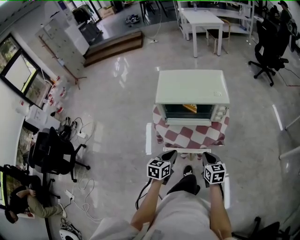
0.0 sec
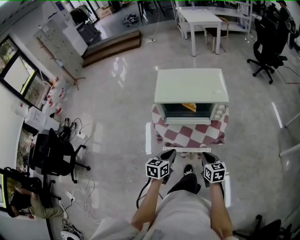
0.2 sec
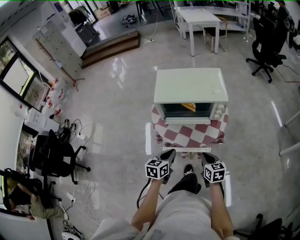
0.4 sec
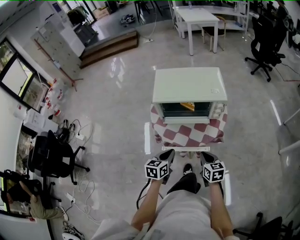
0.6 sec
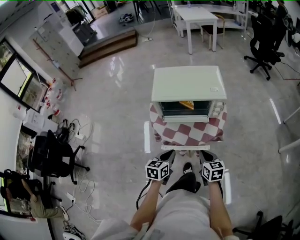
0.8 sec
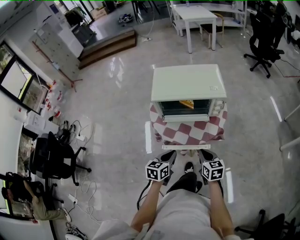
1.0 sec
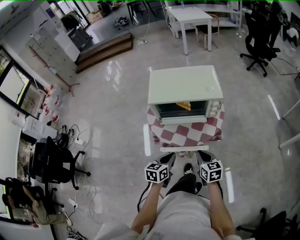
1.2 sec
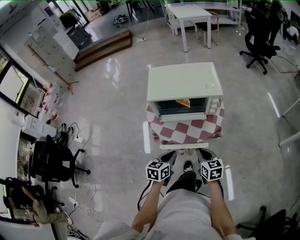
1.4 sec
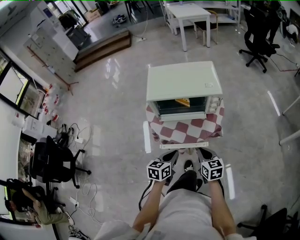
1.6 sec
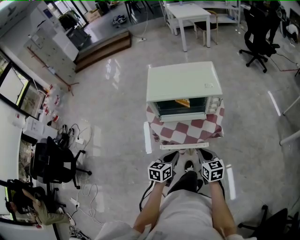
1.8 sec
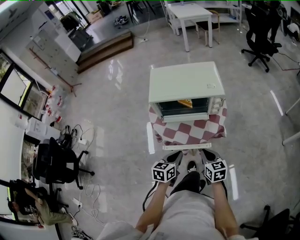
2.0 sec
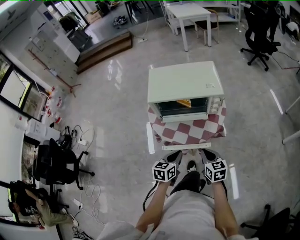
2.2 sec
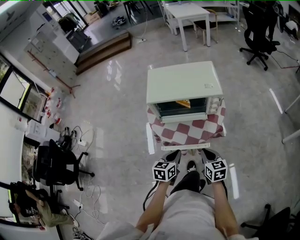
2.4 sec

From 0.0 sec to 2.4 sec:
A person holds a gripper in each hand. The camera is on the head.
From 0.0 sec to 2.4 sec: The grippers stay close to where they were, moving slightly.

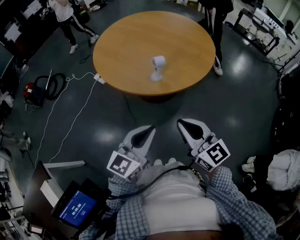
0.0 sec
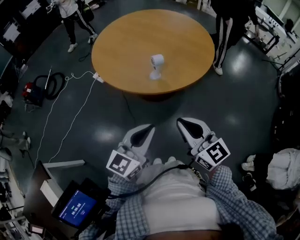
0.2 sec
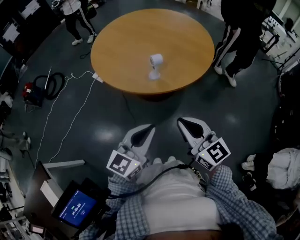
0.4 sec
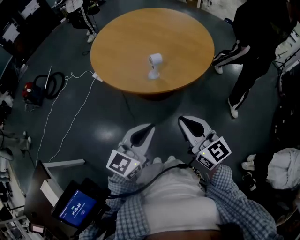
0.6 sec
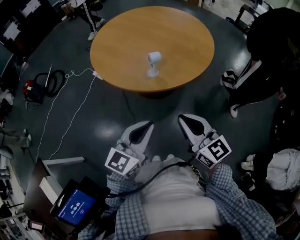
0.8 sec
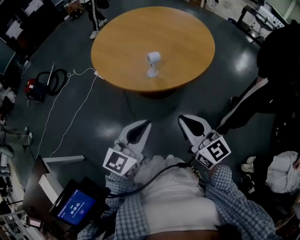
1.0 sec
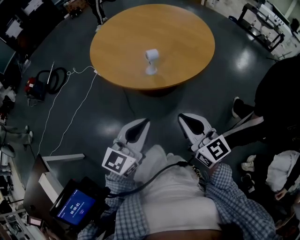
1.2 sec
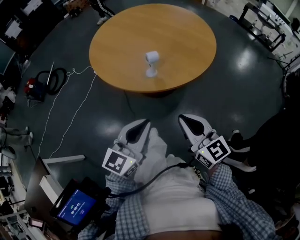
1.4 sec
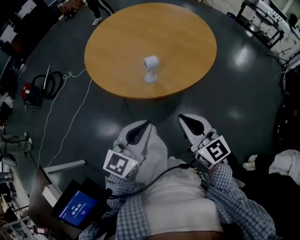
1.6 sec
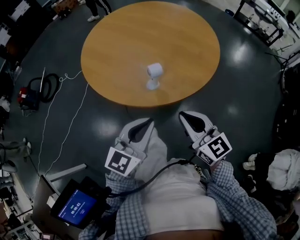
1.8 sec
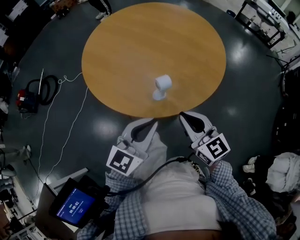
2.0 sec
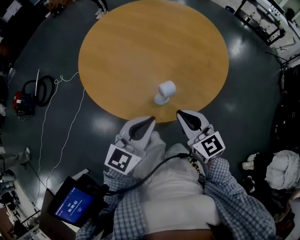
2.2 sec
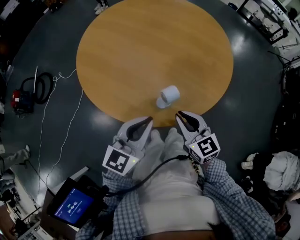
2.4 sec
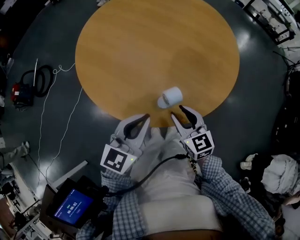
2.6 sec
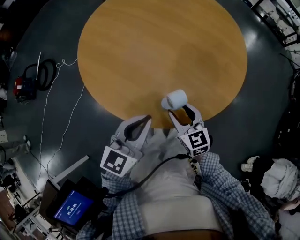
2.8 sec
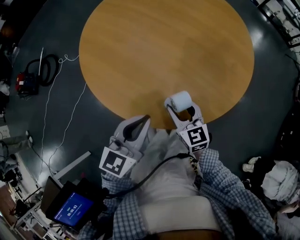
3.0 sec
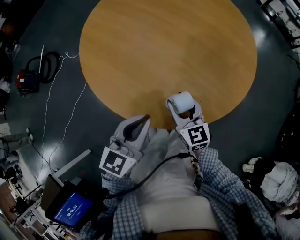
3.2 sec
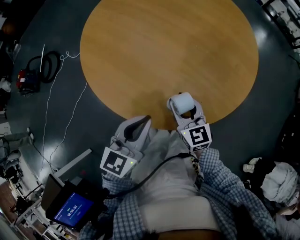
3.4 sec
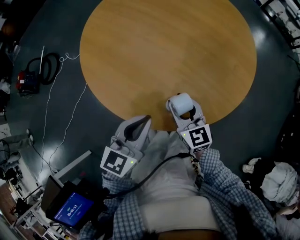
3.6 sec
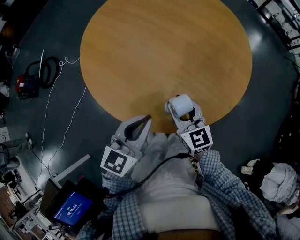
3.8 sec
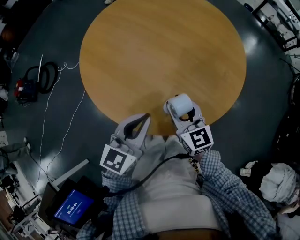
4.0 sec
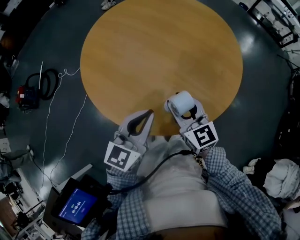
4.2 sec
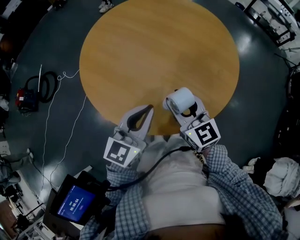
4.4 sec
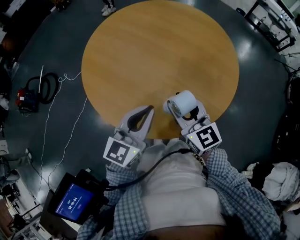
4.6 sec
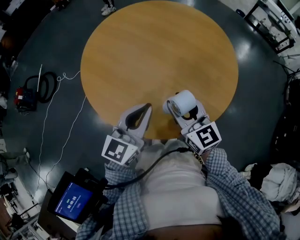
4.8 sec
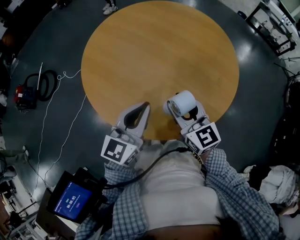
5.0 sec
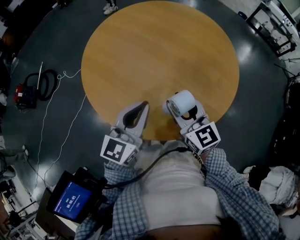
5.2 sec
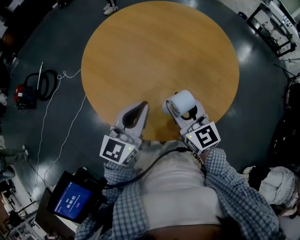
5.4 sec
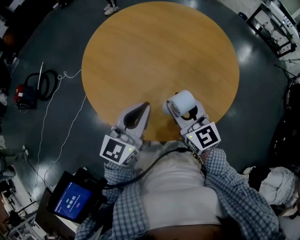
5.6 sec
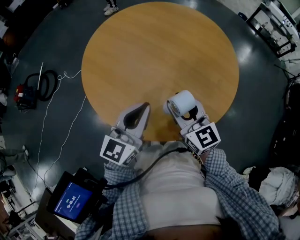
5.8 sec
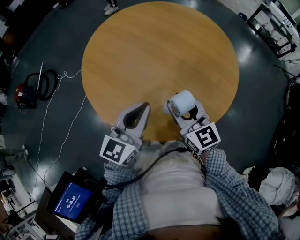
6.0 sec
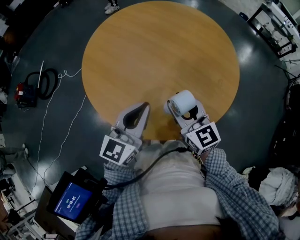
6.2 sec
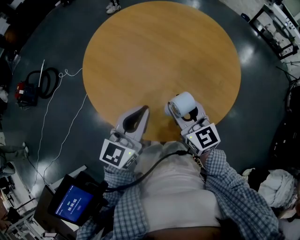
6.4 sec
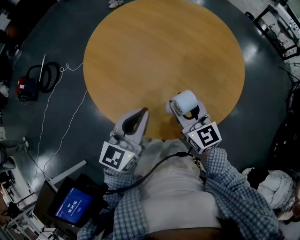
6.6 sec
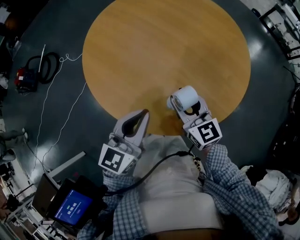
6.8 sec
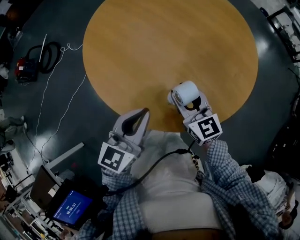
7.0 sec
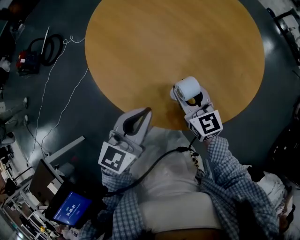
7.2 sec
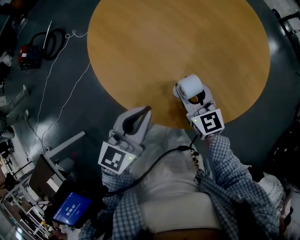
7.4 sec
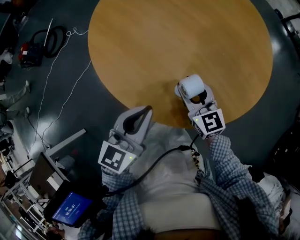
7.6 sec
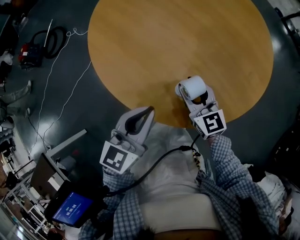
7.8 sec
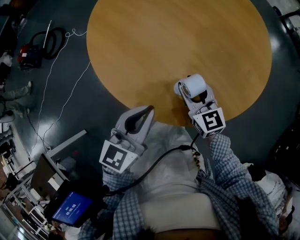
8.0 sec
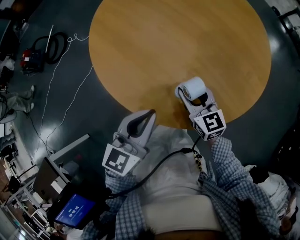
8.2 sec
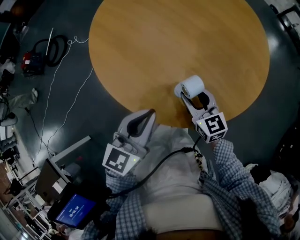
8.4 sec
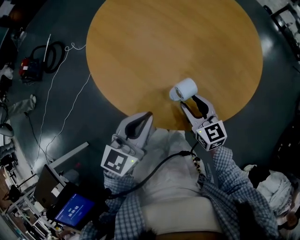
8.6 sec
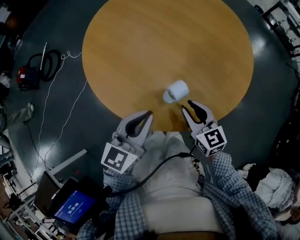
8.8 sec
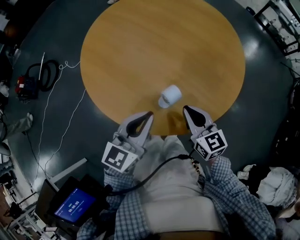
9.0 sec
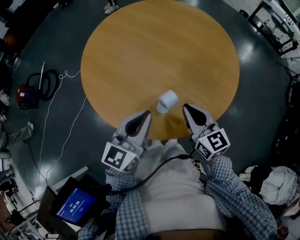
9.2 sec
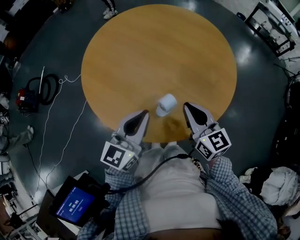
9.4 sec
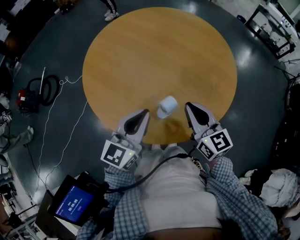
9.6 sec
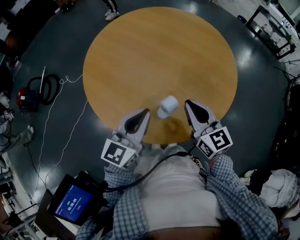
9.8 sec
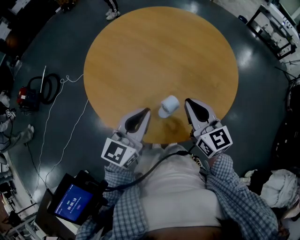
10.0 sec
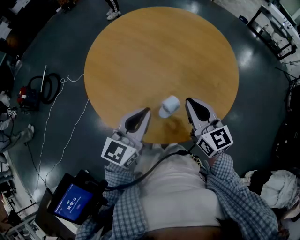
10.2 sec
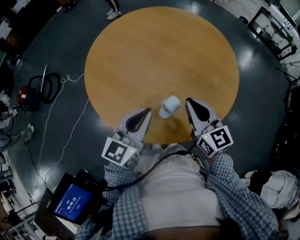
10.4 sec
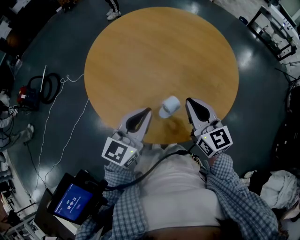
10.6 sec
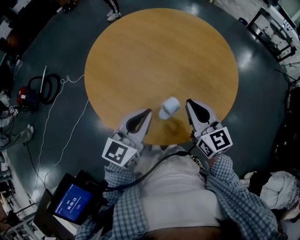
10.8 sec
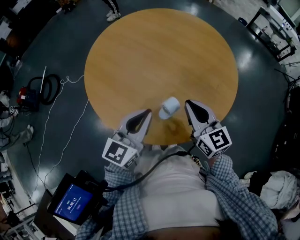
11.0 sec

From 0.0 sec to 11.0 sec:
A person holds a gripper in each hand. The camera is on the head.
From 0.0 sec to 1.6 sec: Both grippers move forward, roughly 5 cm.
From 1.6 sec to 3.2 sec: The left gripper is displaced forward and to the left by some 20 cm; the right gripper heads forward, downward and to the left, covering roughly 30 cm, and opens up.
From 3.2 sec to 4.8 sec: The left gripper goes approximately 10 cm upward and forward. Meanwhile the right gripper heads upward, covering approximately 10 cm.
From 4.8 sec to 6.2 sec: There are only small adjustments of the grippers.
From 6.2 sec to 7.8 sec: The right gripper goes some 10 cm downward; the left gripper is displaced downward, to the left and backward by some 10 cm.
From 7.8 sec to 9.4 sec: The left gripper is displaced upward by about 5 cm. Meanwhile the right gripper goes approximately 15 cm upward and to the right, and closes its fingers.
From 9.4 sec to 11.0 sec: There are only small adjustments of the grippers.

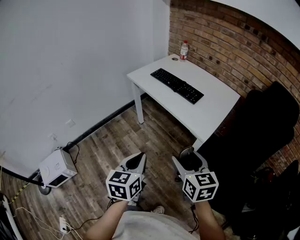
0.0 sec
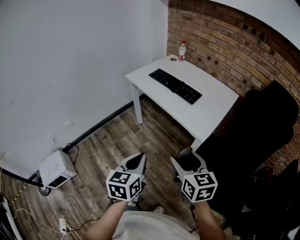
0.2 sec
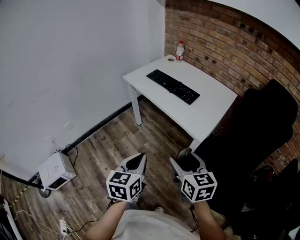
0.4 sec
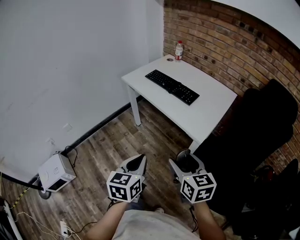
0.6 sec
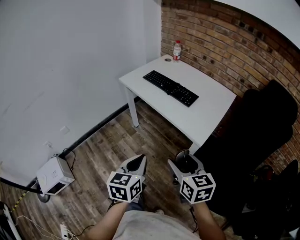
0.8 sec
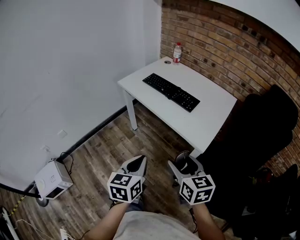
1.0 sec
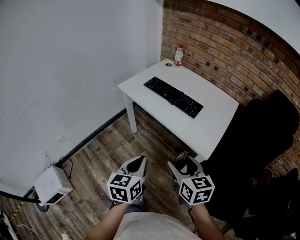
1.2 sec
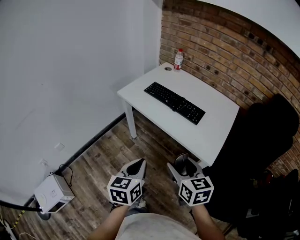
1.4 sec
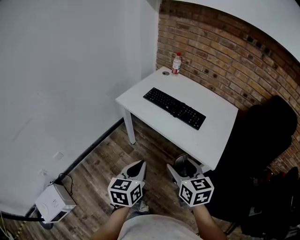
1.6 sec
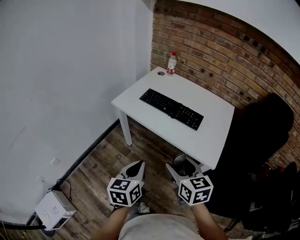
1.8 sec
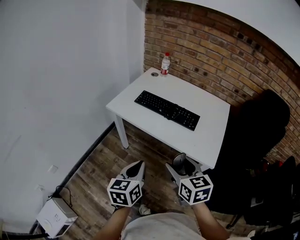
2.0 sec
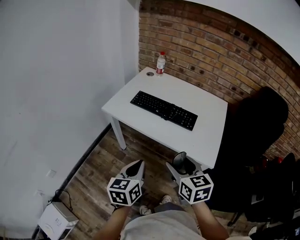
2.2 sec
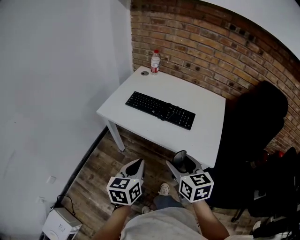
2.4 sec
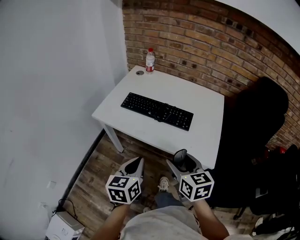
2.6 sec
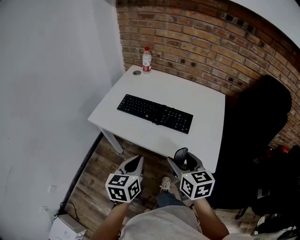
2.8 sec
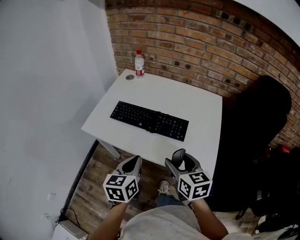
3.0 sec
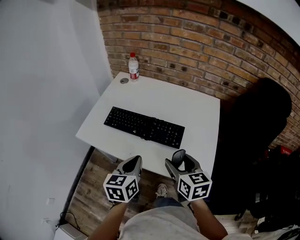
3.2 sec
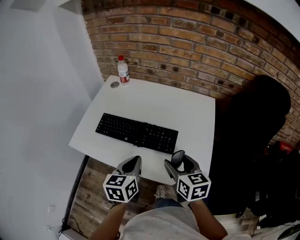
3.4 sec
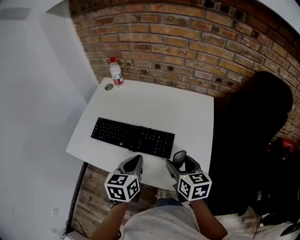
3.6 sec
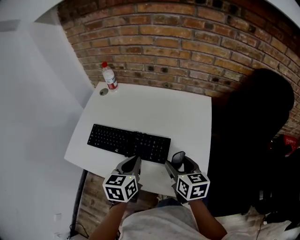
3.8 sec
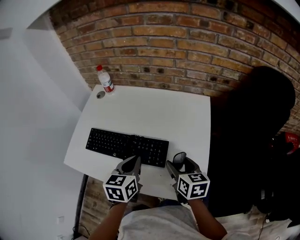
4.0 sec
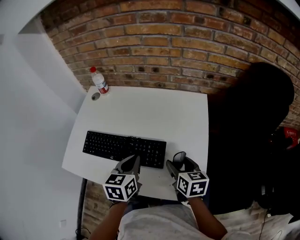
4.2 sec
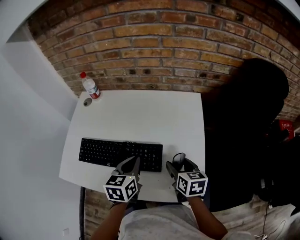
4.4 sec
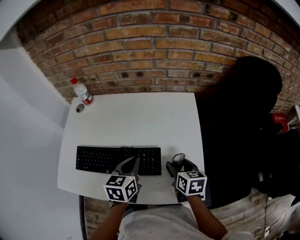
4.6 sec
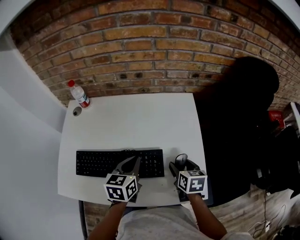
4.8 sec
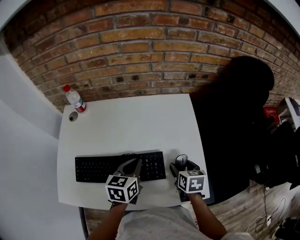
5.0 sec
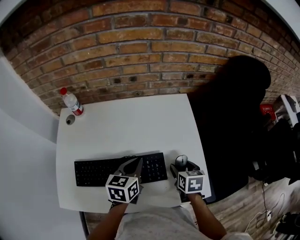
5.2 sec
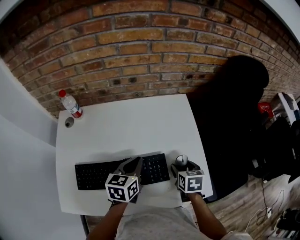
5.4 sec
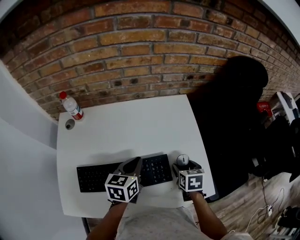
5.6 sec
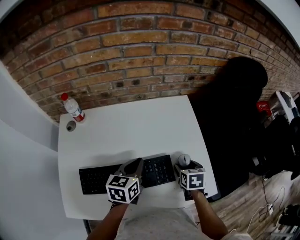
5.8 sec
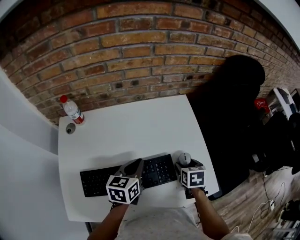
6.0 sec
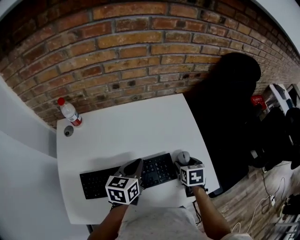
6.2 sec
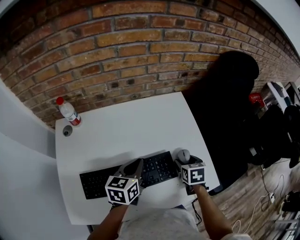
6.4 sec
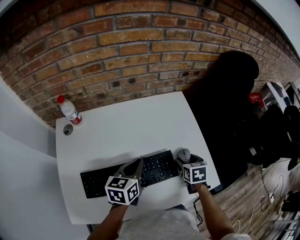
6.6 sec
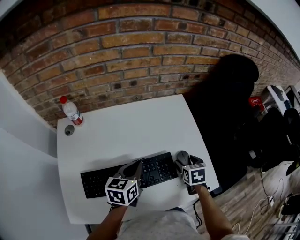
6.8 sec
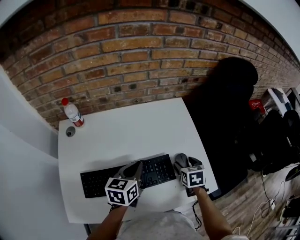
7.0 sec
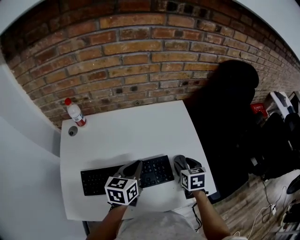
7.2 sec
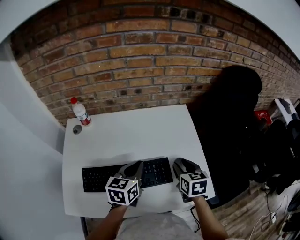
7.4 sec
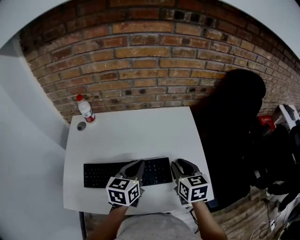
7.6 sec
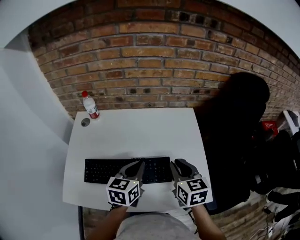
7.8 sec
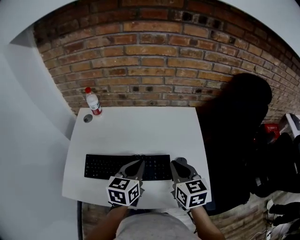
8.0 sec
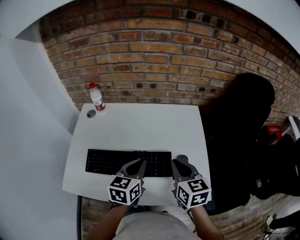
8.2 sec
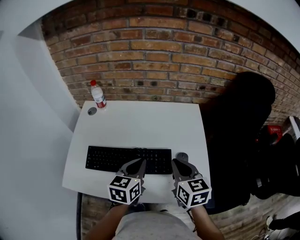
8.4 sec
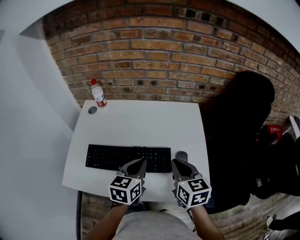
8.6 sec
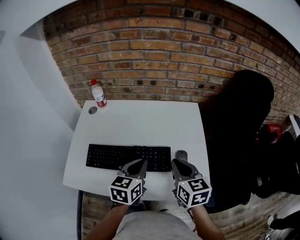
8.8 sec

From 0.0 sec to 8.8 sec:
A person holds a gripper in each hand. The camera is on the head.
From 0.0 sec to 1.4 sec: Both grippers move forward, about 15 cm.
From 1.4 sec to 3.0 sec: The grippers both shift forward by roughly 20 cm.
From 3.0 sec to 4.4 sec: The right gripper is displaced forward, to the right and downward by roughly 25 cm, and rotates roughly 30 degrees; the left gripper heads forward and to the right, covering about 25 cm.
From 4.4 sec to 5.8 sec: The left gripper ends up some 10 cm from where it was, and swivels some 20 degrees, while the right gripper turns by approximately 30 degrees.
From 5.8 sec to 7.4 sec: The right gripper is displaced upward by roughly 10 cm, and closes.
From 7.4 sec to 8.8 sec: The left gripper goes some 10 cm backward, while the right gripper travels backward and upward by approximately 10 cm, changes its angle by about 20 degrees, and closes.

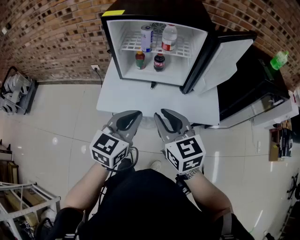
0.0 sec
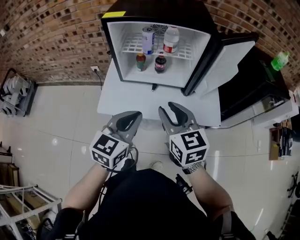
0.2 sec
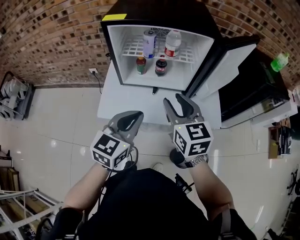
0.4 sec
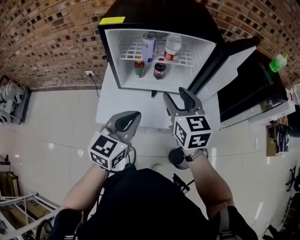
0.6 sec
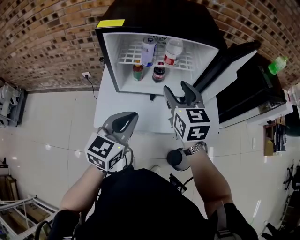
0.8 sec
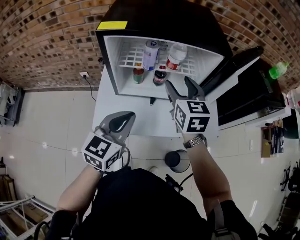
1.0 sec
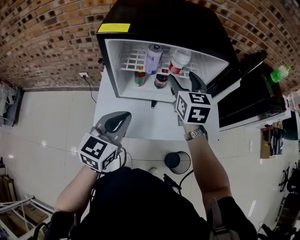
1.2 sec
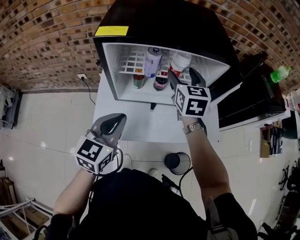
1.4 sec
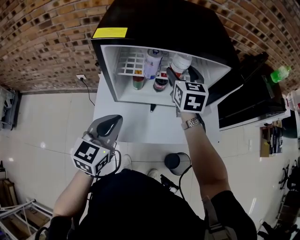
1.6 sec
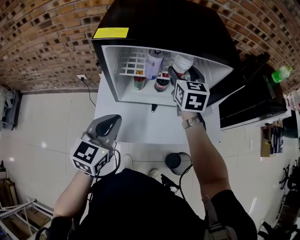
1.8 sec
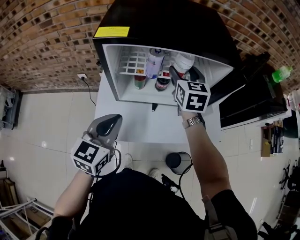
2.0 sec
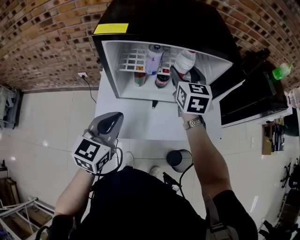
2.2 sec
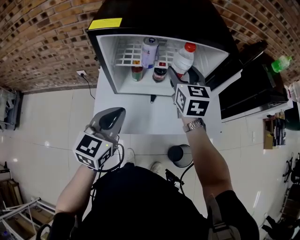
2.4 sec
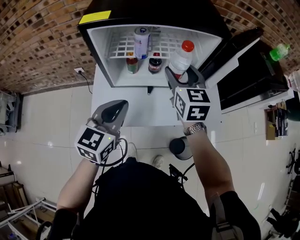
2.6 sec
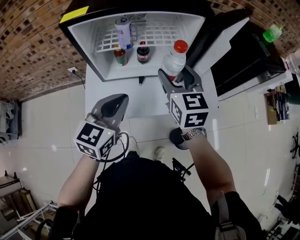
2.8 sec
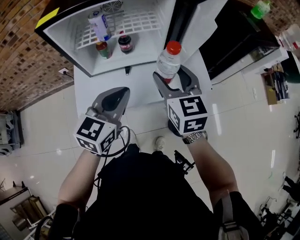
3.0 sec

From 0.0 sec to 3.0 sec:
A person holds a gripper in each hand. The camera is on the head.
From 0.0 sec to 1.6 sec: The right gripper moves forward, roughly 35 cm, changes its angle by roughly 30 degrees, and opens. The left gripper is displaced forward and to the left by about 20 cm.
From 1.6 sec to 3.0 sec: The right gripper is displaced backward and to the right by about 25 cm. Meanwhile the left gripper heads to the right, covering about 15 cm.
